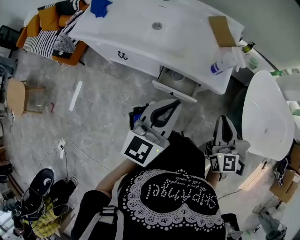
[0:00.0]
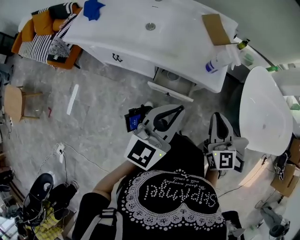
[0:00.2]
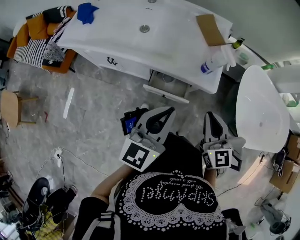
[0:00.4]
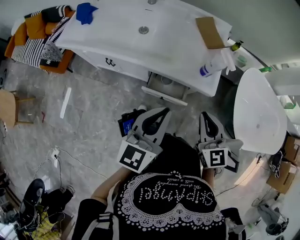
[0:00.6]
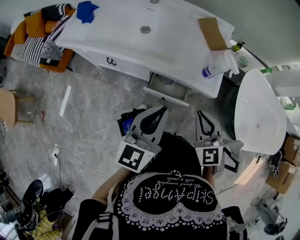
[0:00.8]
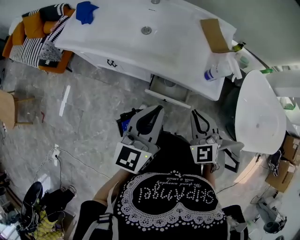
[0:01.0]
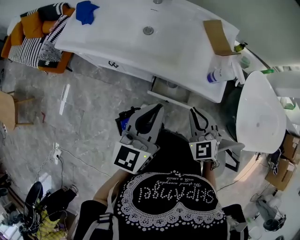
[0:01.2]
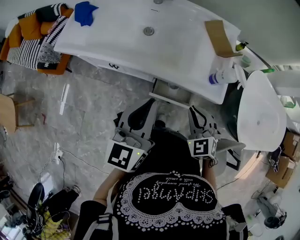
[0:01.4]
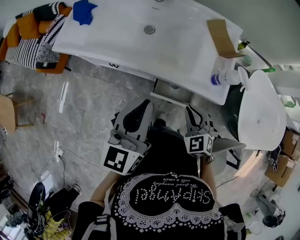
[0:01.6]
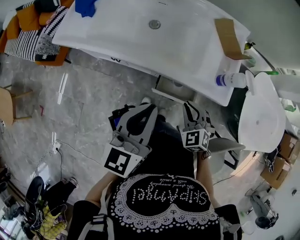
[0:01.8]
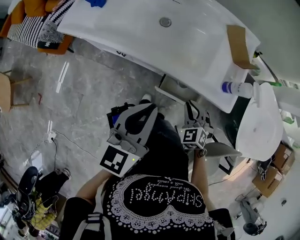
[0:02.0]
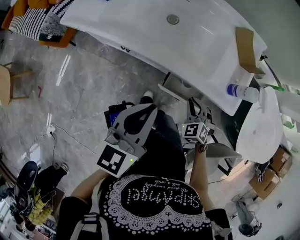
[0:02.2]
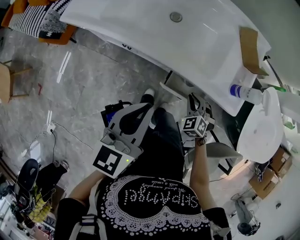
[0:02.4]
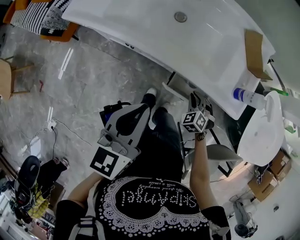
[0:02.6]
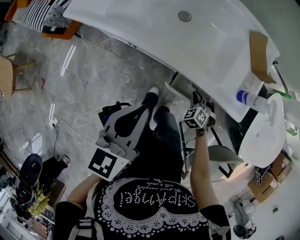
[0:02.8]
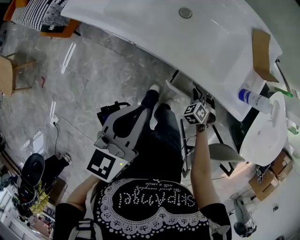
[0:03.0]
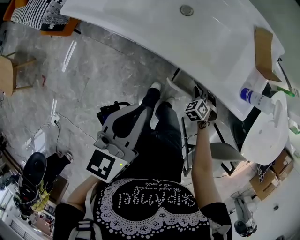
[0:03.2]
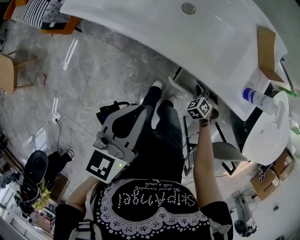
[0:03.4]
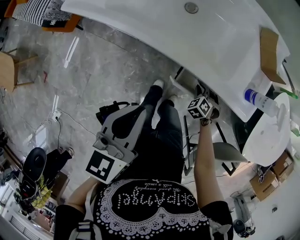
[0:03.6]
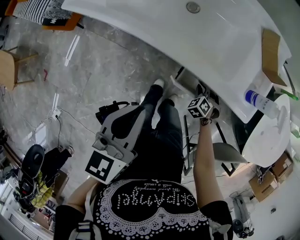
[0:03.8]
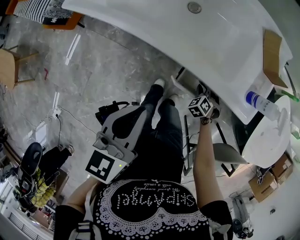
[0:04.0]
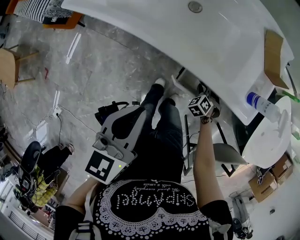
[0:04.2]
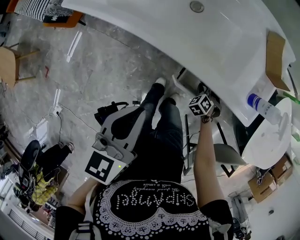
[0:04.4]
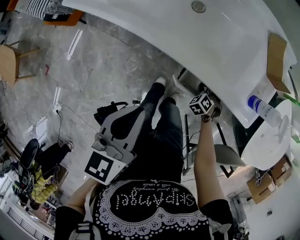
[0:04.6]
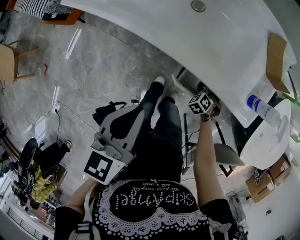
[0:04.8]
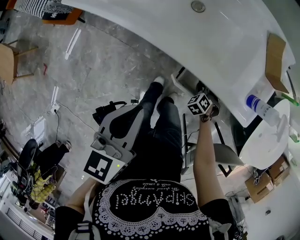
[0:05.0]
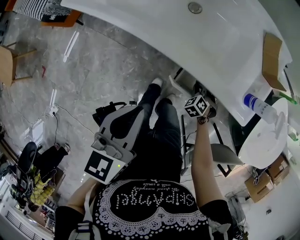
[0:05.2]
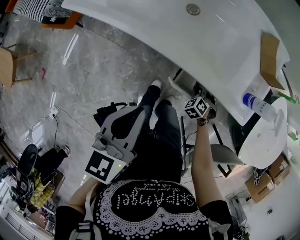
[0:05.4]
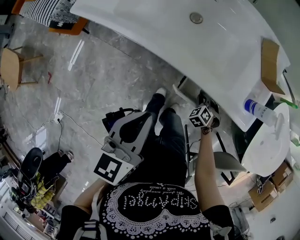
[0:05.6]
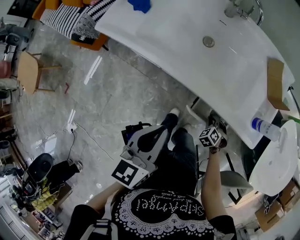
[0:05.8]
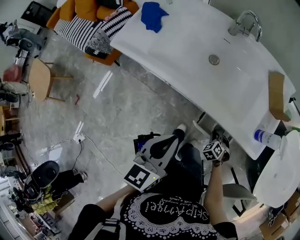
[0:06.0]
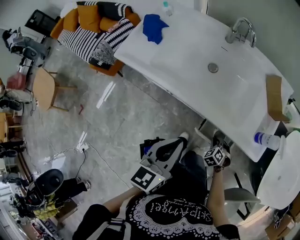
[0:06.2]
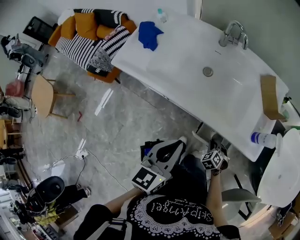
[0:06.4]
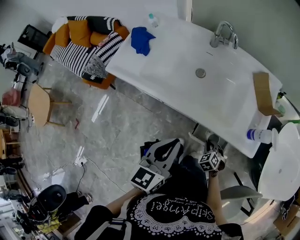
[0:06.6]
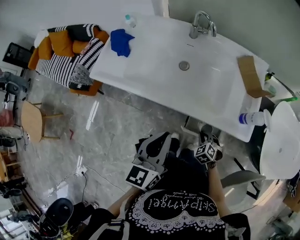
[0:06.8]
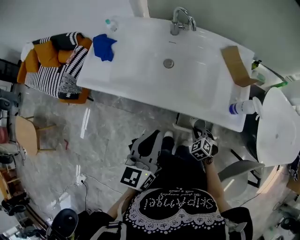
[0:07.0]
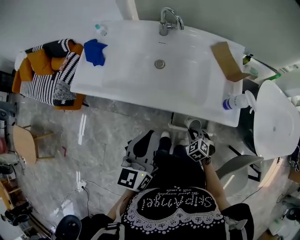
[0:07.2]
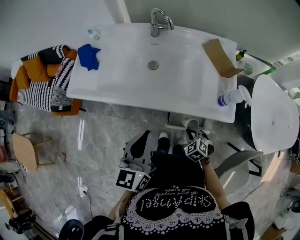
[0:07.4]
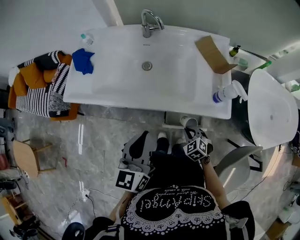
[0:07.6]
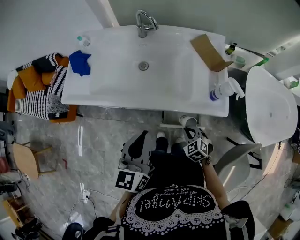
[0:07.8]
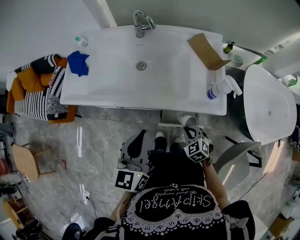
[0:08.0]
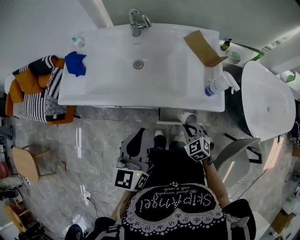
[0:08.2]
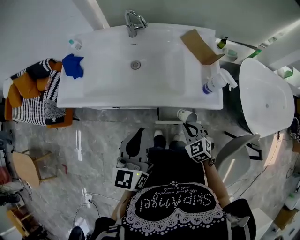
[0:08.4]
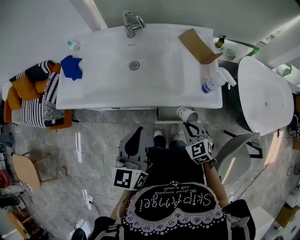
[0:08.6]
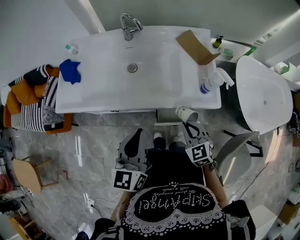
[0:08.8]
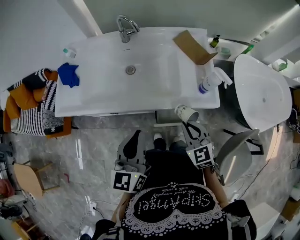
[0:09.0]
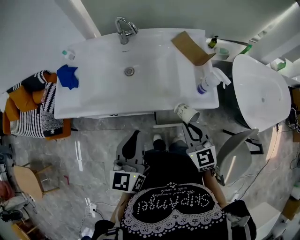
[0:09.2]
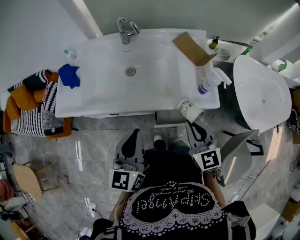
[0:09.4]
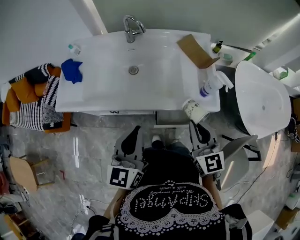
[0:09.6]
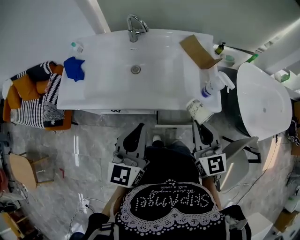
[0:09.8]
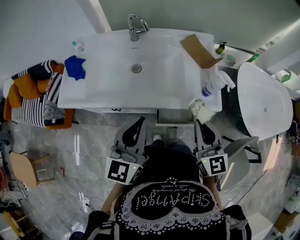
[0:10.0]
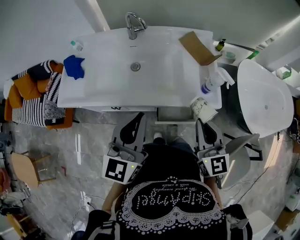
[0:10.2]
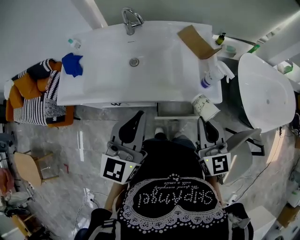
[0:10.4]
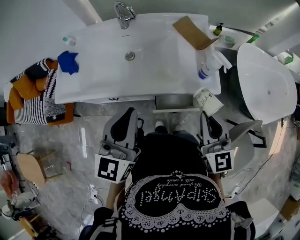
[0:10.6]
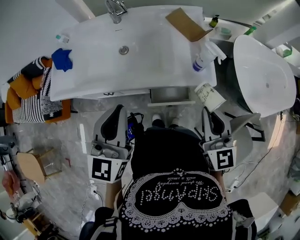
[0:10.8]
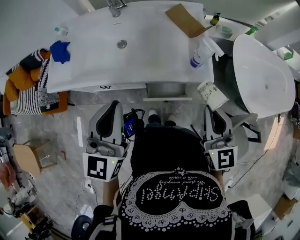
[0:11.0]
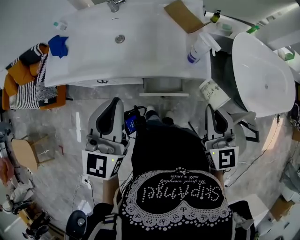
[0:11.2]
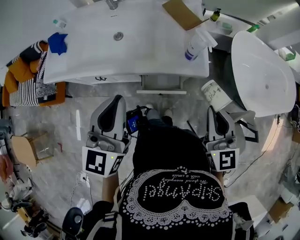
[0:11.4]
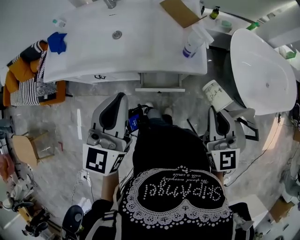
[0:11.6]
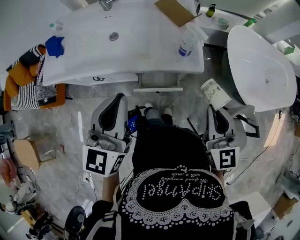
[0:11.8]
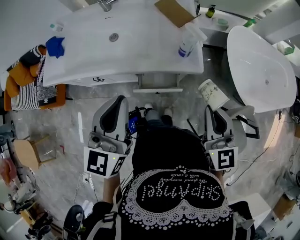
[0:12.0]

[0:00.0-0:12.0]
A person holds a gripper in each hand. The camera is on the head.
0:00.0 to 0:01.6: The left gripper shifts roughly 15 cm to the left and forward. Meanwhile the right gripper shifts approximately 20 cm to the left, downward and forward, and angles its fingers downward, by some 30 degrees.
0:01.6 to 0:03.0: The left gripper shifts roughly 10 cm to the left and downward, while the right gripper moves downward, approximately 25 cm, and rotates roughly 30 degrees.
0:03.0 to 0:04.4: The right gripper shifts some 5 cm downward.
0:04.4 to 0:06.0: The right gripper ends up roughly 5 cm from where it was.
0:06.0 to 0:07.6: The right gripper moves upward, approximately 15 cm, and changes its angle by some 20 degrees. The left gripper moves upward, some 5 cm.
0:07.6 to 0:09.0: The right gripper goes approximately 15 cm upward, and swivels some 30 degrees.
0:09.0 to 0:10.4: The right gripper is displaced upward by about 10 cm, and swivels approximately 30 degrees. Meanwhile the left gripper is displaced upward by about 5 cm.
0:10.4 to 0:12.0: Both grippers travel together to the right and backward, approximately 15 cm.

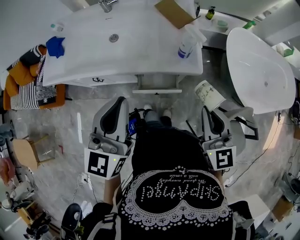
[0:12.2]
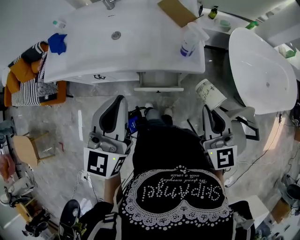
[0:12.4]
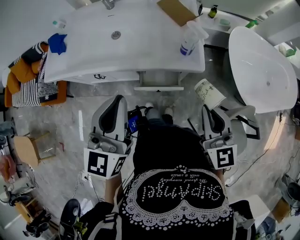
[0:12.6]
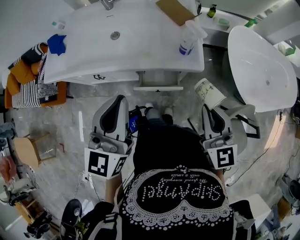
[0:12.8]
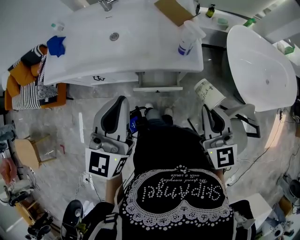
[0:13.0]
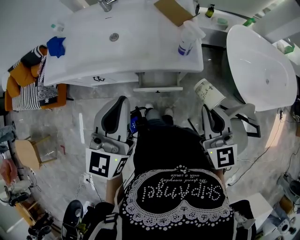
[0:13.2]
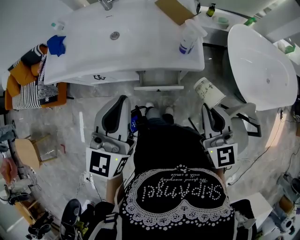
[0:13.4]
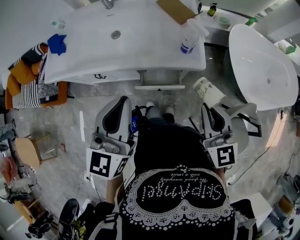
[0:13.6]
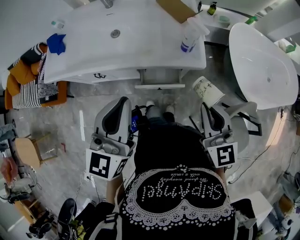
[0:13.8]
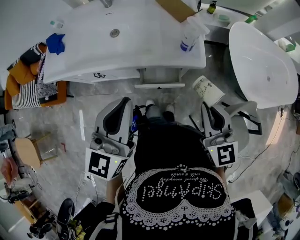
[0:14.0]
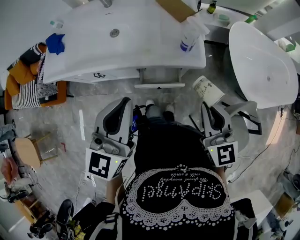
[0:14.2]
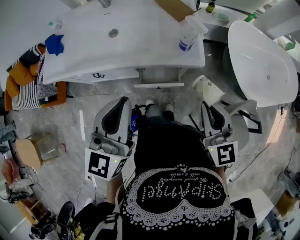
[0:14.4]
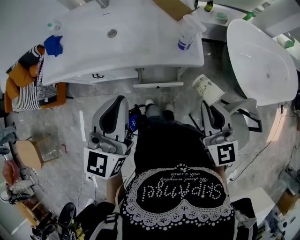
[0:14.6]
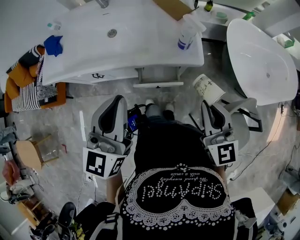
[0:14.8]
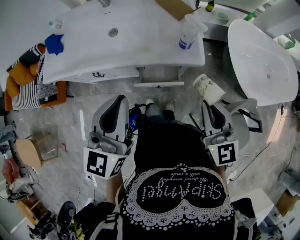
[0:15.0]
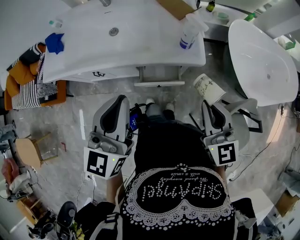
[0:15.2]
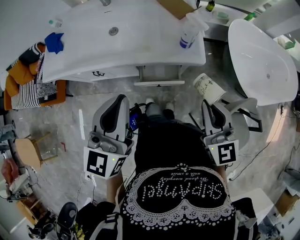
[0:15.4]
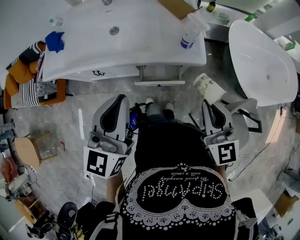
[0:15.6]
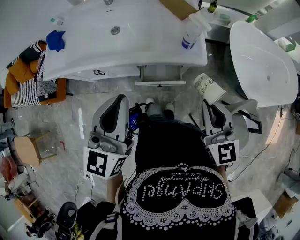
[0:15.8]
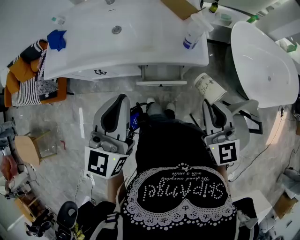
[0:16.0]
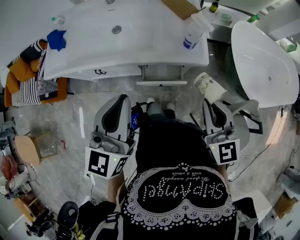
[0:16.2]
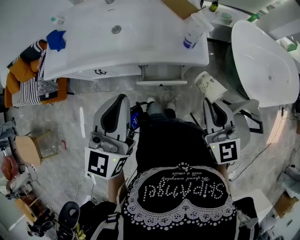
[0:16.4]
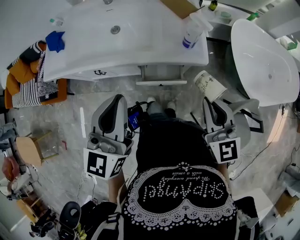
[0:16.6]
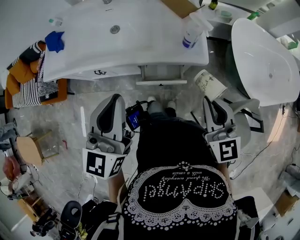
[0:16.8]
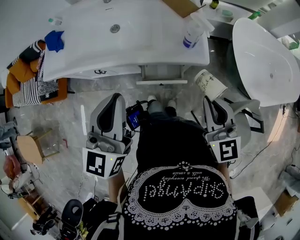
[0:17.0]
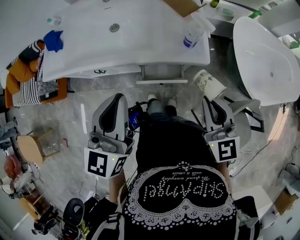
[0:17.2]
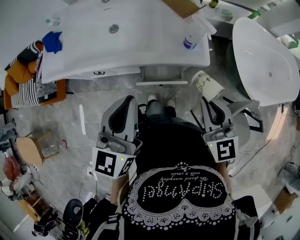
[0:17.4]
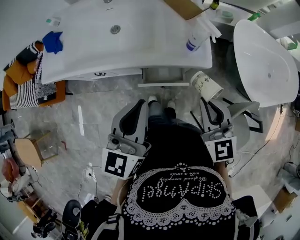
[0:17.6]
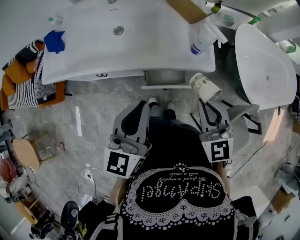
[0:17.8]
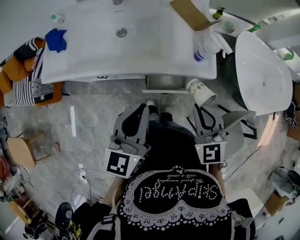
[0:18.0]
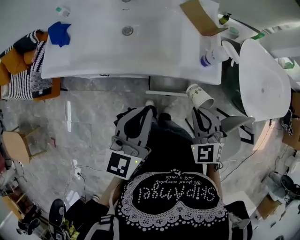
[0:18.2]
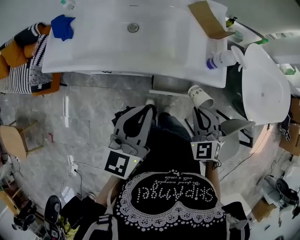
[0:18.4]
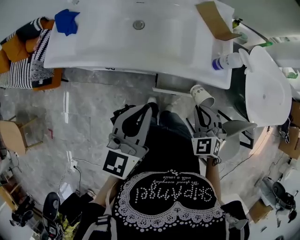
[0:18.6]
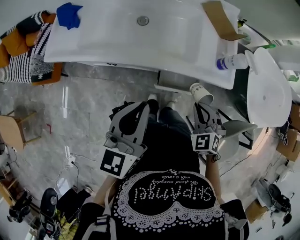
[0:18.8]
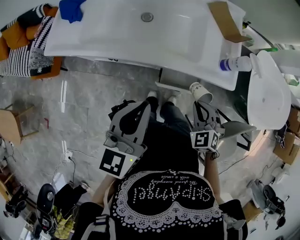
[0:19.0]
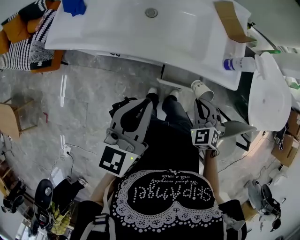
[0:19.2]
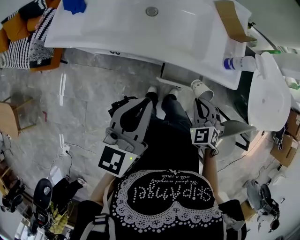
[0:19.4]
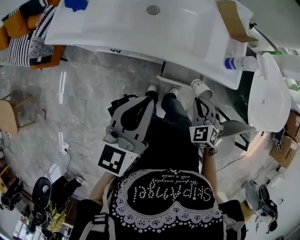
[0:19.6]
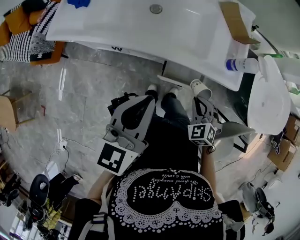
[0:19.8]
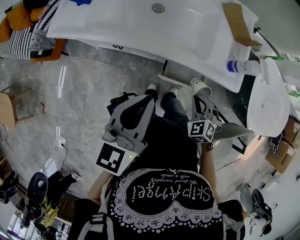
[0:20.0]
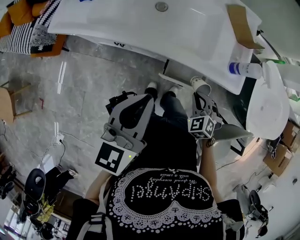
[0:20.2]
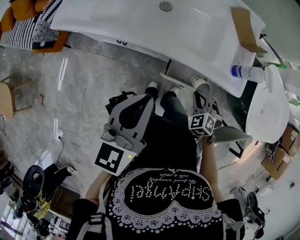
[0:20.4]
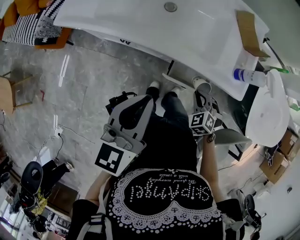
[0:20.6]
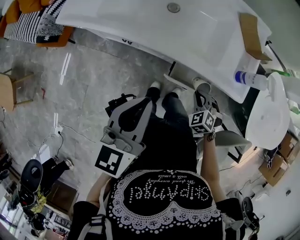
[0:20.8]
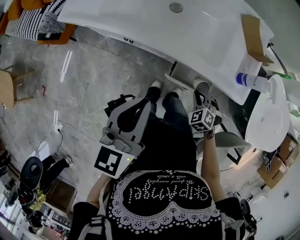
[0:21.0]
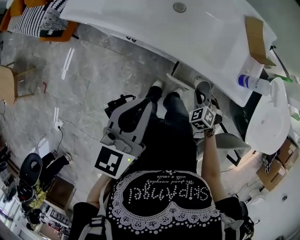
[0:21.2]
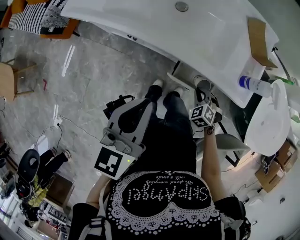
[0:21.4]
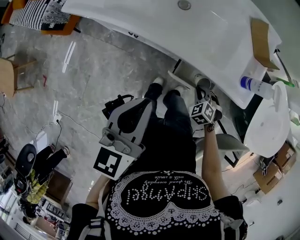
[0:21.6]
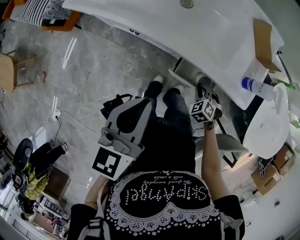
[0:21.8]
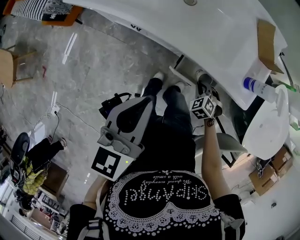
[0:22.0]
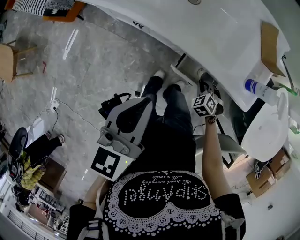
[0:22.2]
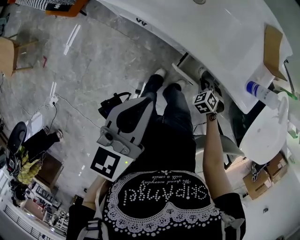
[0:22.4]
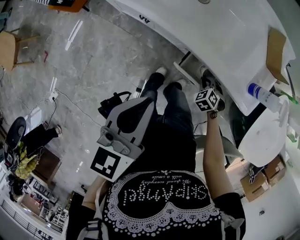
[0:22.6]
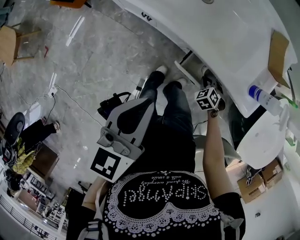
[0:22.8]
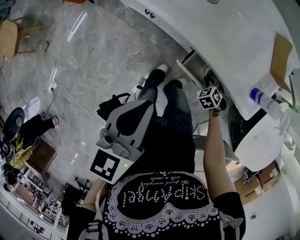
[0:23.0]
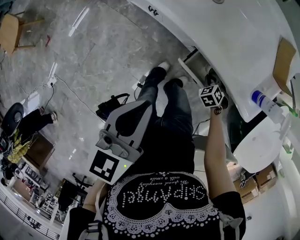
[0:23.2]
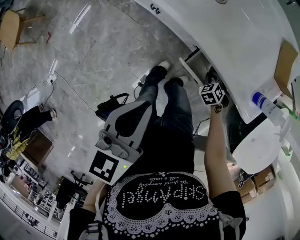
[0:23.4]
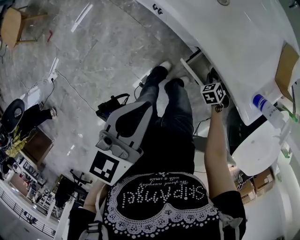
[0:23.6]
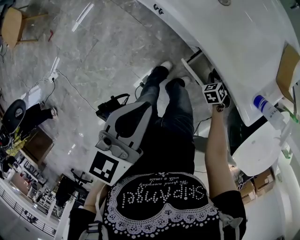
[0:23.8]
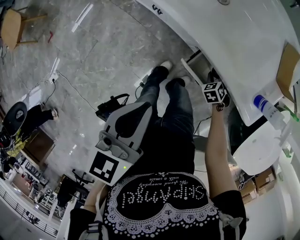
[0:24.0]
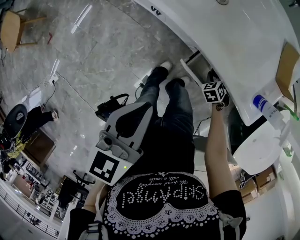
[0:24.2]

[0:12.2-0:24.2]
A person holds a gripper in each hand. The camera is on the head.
0:12.2 to 0:13.8: The grippers make only small movements.
0:13.8 to 0:15.2: The two grippers keep their place.
0:15.2 to 0:16.6: Both grippers stay put.
0:16.6 to 0:18.2: The left gripper shifts by roughly 5 cm. Meanwhile the right gripper moves to the left and downward, some 10 cm, and turns by approximately 40 degrees.
0:18.2 to 0:19.8: The left gripper shifts some 10 cm to the left. The right gripper shifts approximately 15 cm downward.
0:19.8 to 0:21.2: The right gripper goes some 10 cm downward.
0:21.2 to 0:22.6: The right gripper shifts roughly 10 cm downward.
0:22.6 to 0:24.2: The right gripper shifts by some 5 cm.
